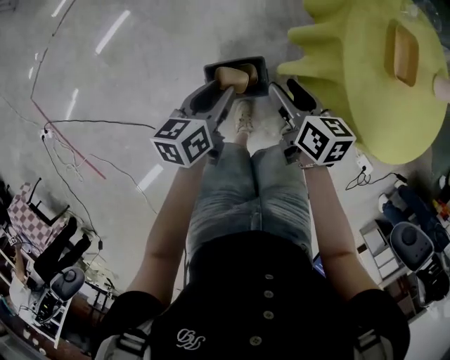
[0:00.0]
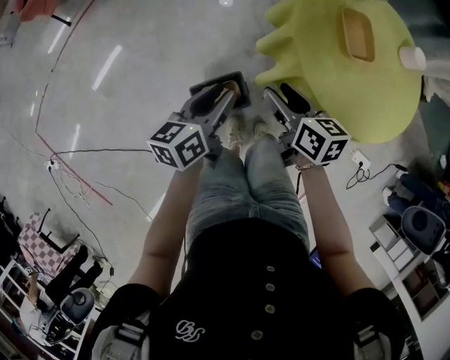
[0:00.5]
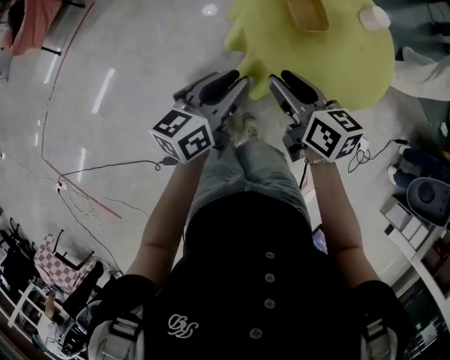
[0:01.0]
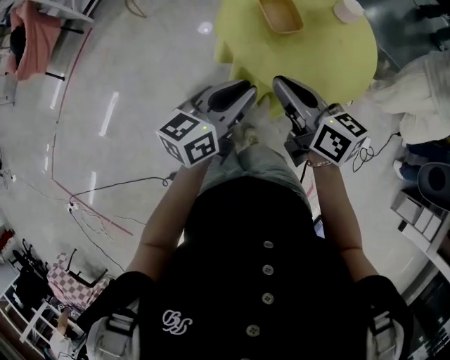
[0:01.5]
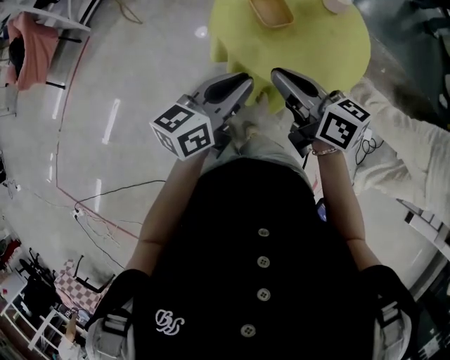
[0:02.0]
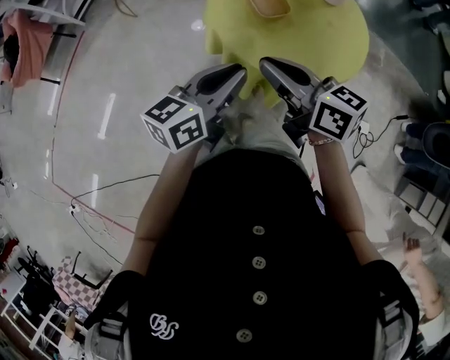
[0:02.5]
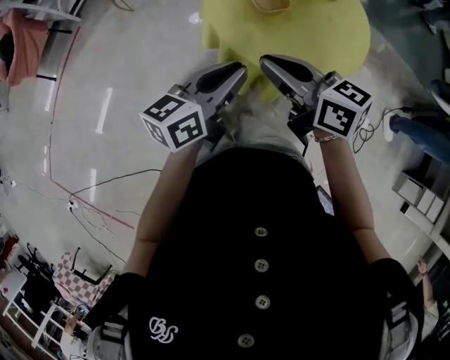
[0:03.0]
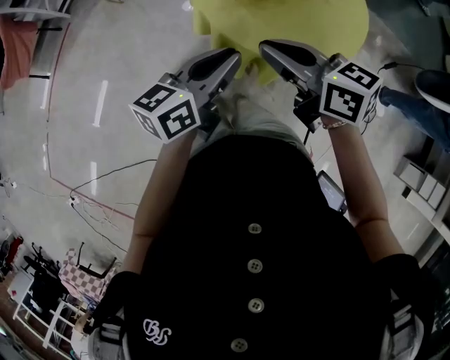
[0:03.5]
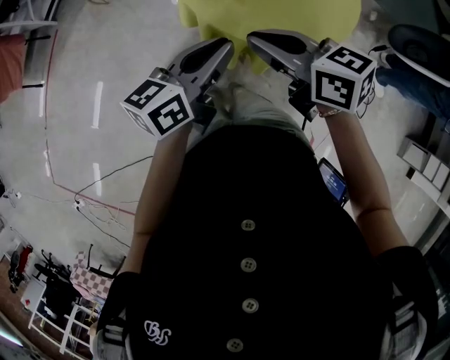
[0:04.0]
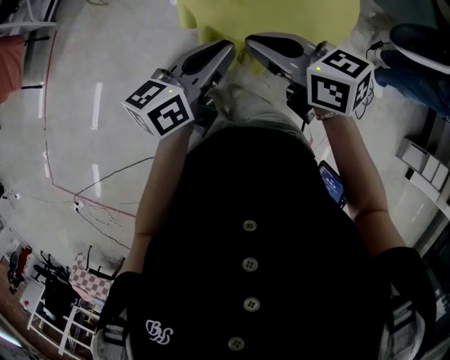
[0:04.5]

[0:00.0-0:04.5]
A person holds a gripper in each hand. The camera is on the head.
0:00.0 to 0:02.0: The left gripper shifts about 35 cm to the right and upward, and changes its angle by roughly 50 degrees; the right gripper shifts some 30 cm upward and to the right, rotates some 30 degrees, and closes its fingers.
0:02.0 to 0:04.5: The grippers move only a little.

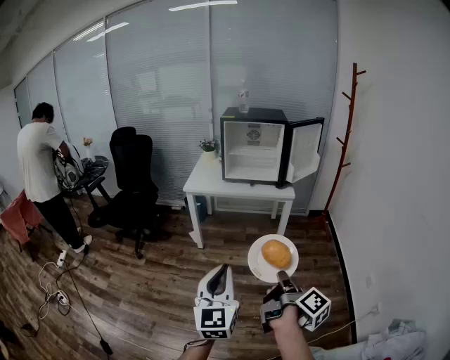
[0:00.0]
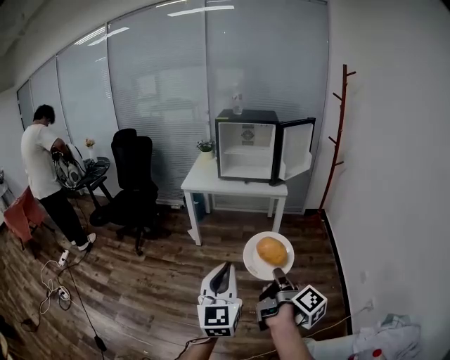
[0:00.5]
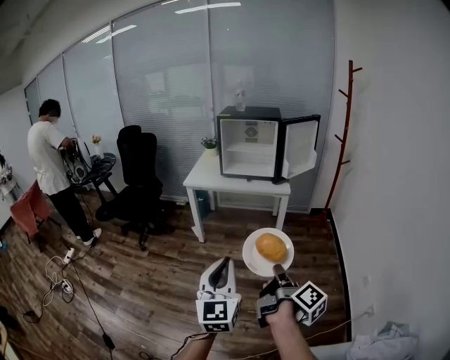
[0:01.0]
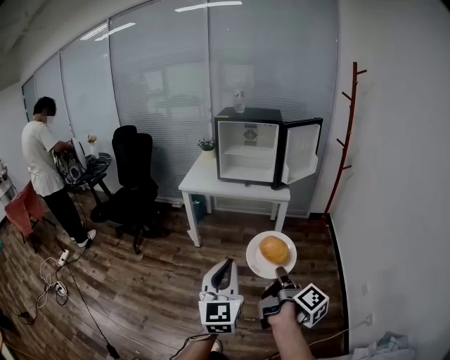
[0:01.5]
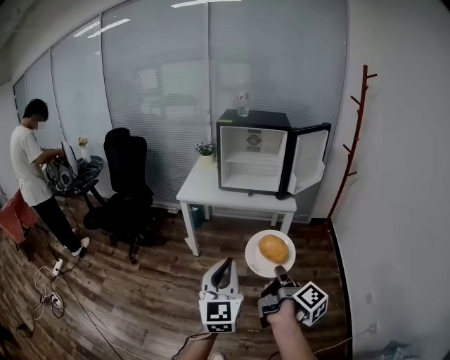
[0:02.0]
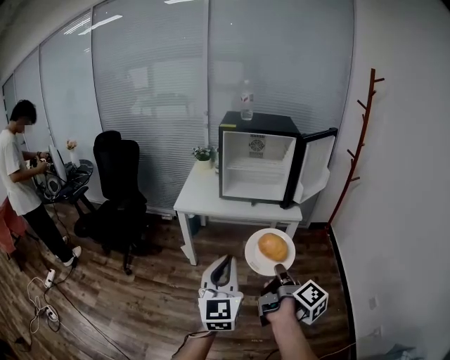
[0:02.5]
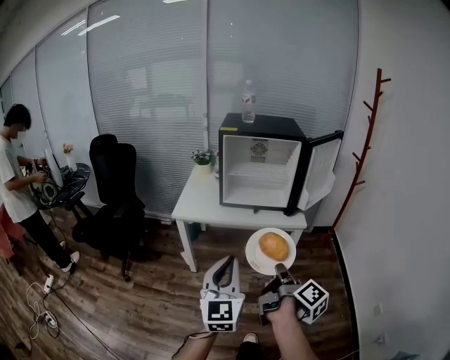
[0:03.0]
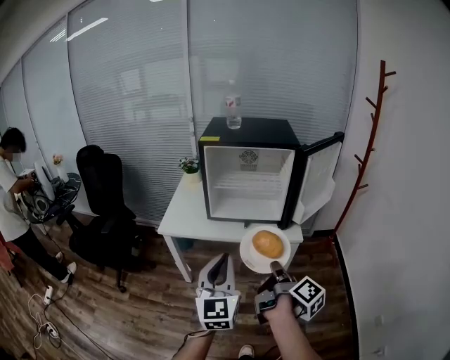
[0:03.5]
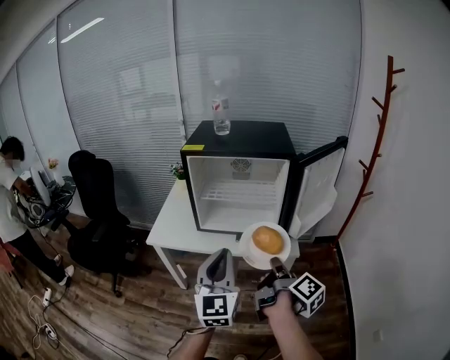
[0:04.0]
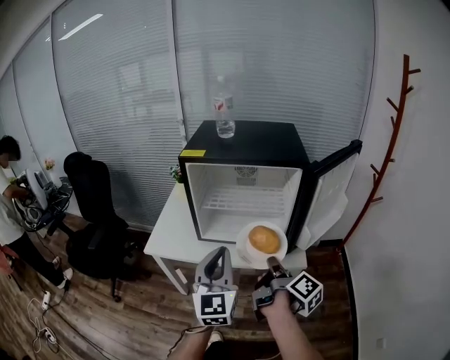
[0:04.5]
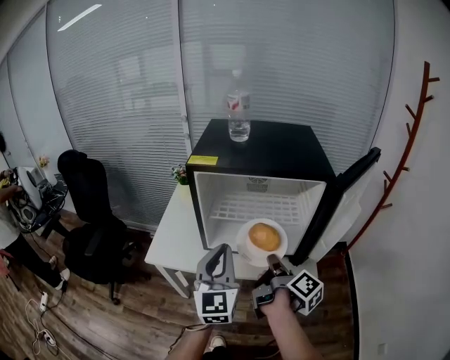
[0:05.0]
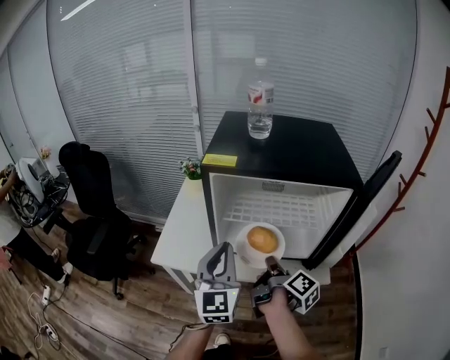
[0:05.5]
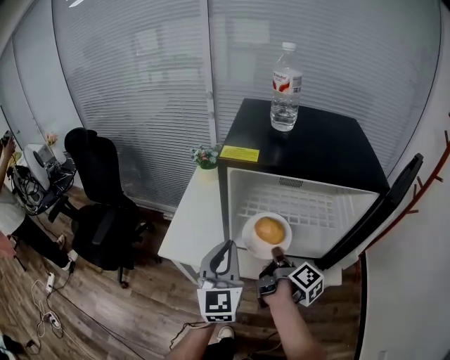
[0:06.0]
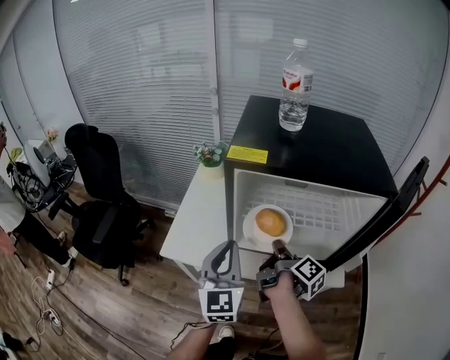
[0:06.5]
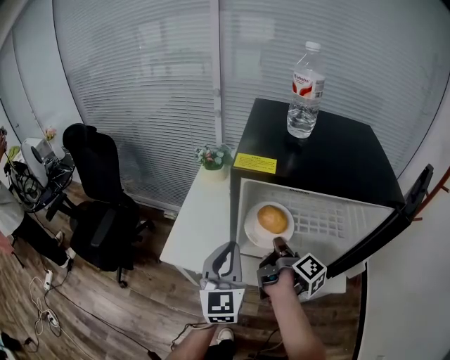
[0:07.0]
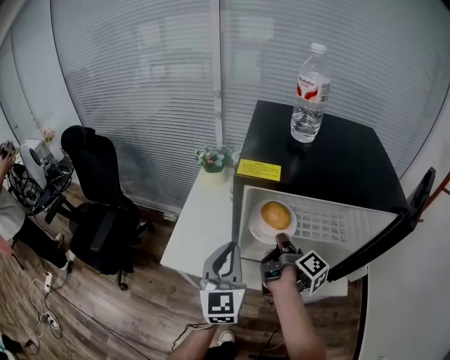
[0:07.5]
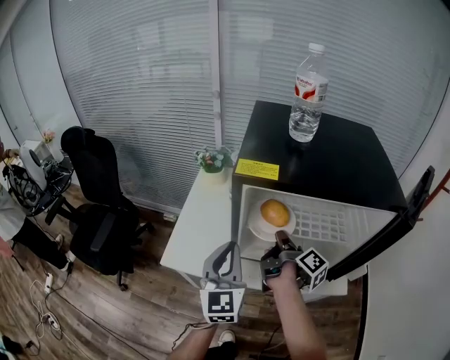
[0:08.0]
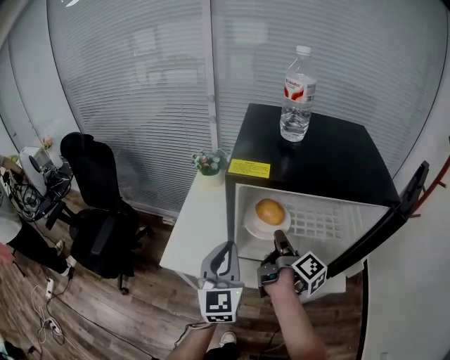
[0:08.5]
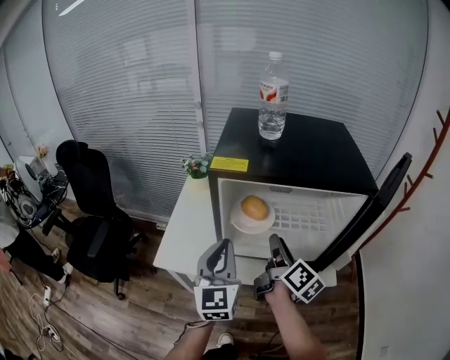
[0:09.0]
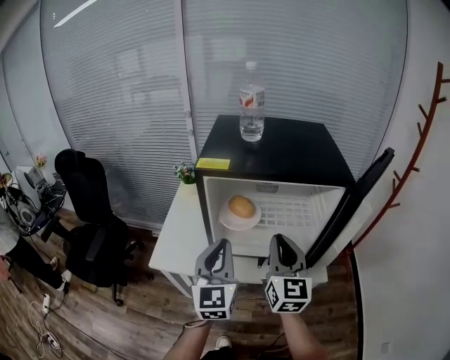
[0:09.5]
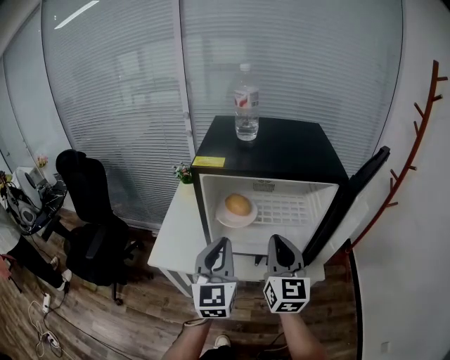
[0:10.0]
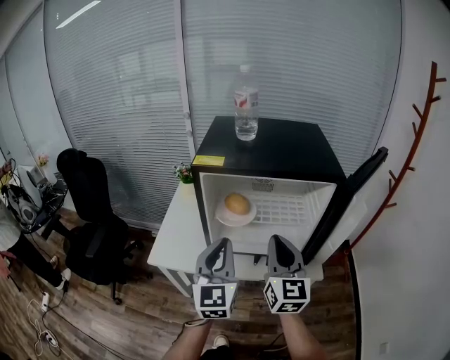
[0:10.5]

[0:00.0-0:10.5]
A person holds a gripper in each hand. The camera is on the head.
0:00.0 to 0:02.0: The left gripper moves about 15 cm.
0:02.0 to 0:04.0: The left gripper ends up some 40 cm from where it was.
0:04.0 to 0:06.5: The left gripper shifts by roughly 30 cm.
0:08.5 to 0:10.5: The left gripper changes place by roughly 10 cm.

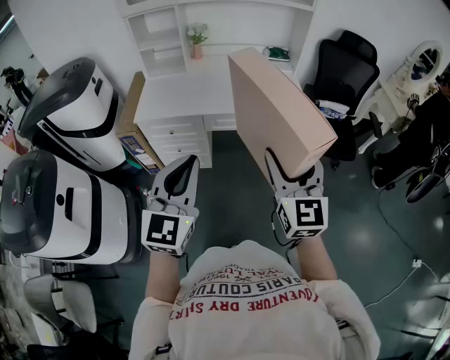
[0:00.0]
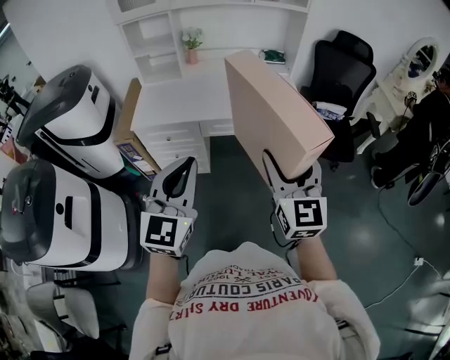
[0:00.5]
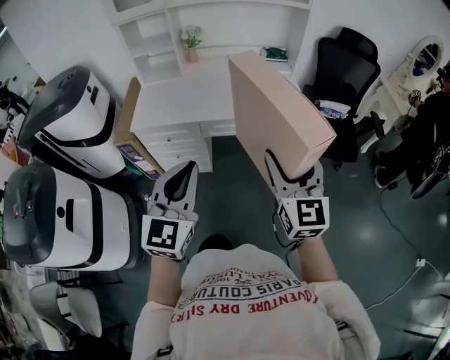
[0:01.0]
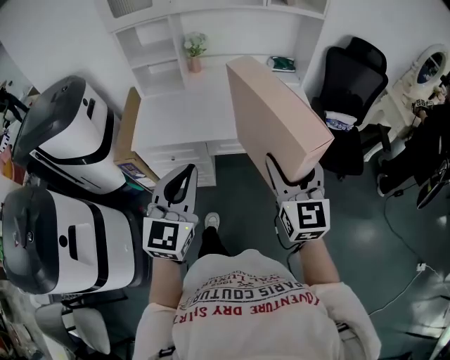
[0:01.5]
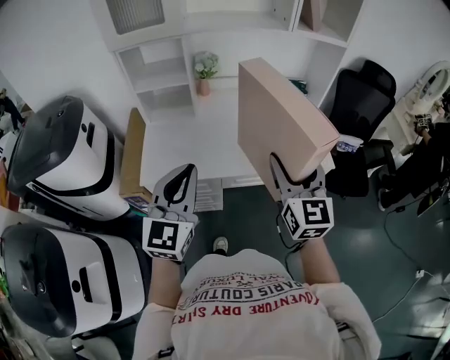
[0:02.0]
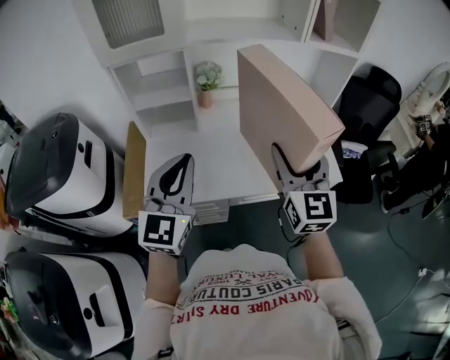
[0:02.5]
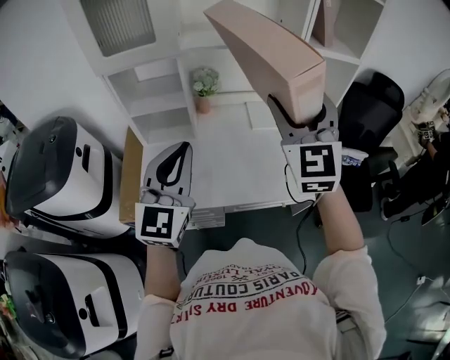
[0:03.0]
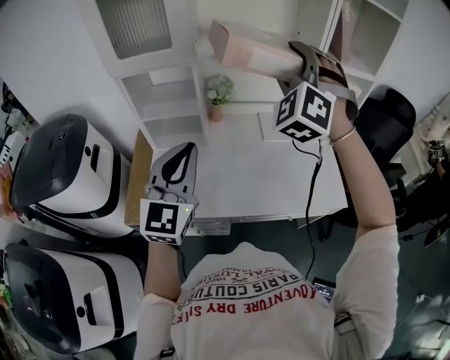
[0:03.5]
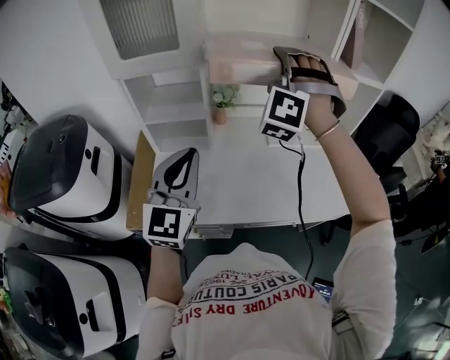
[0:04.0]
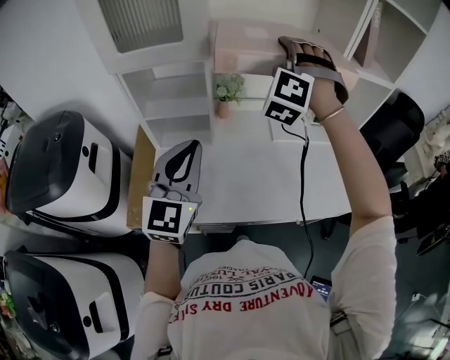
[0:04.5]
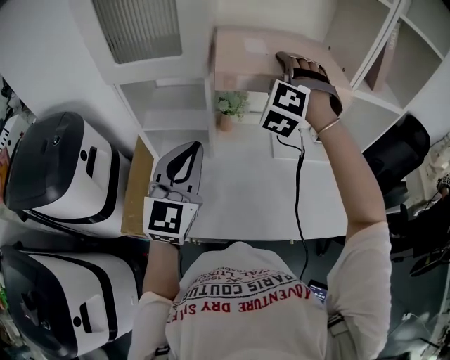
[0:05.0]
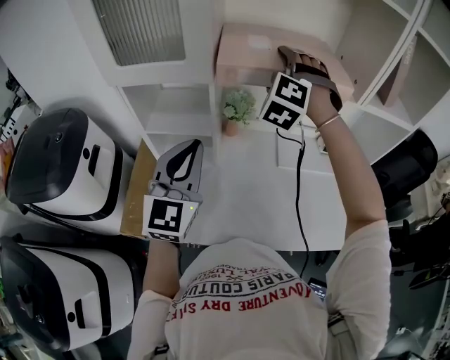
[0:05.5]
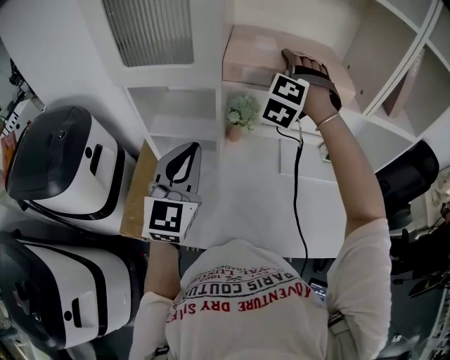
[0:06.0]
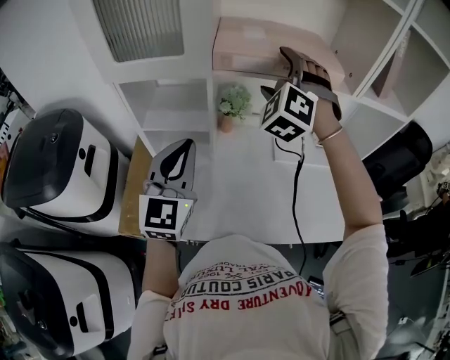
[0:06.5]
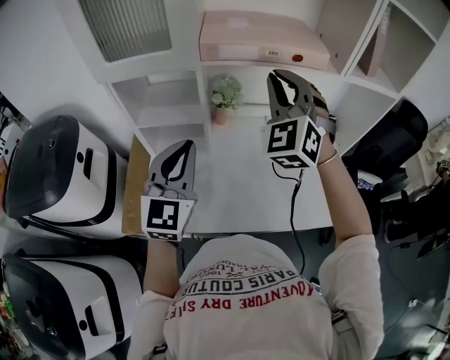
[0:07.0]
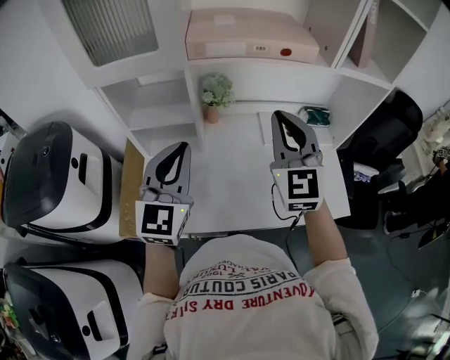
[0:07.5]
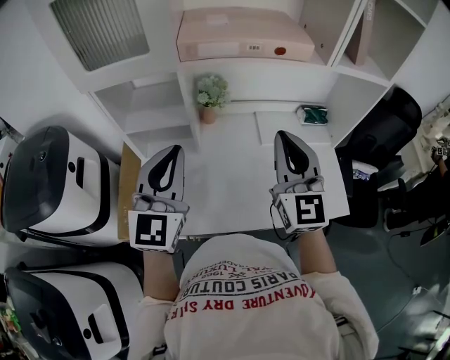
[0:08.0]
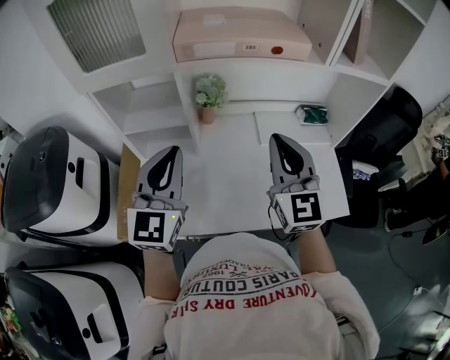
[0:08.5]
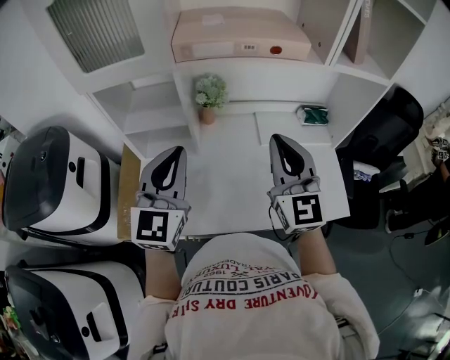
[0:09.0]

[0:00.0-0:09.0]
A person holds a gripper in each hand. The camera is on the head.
0:00.0 to 0:02.0: The grippers both shift forward and to the left by some 30 cm.
0:02.0 to 0:04.5: The right gripper goes roughly 40 cm forward and to the left, and twists approximately 80 degrees counterclockwise, seen from behind; the left gripper moves forward, approximately 20 cm.
0:04.5 to 0:07.0: The right gripper moves some 10 cm forward and comes back, swivels approximately 40 degrees, and closes.
0:07.0 to 0:09.0: The right gripper travels backward, downward and to the right by approximately 15 cm, and rolls clockwise, seen from behind, by roughly 40 degrees.

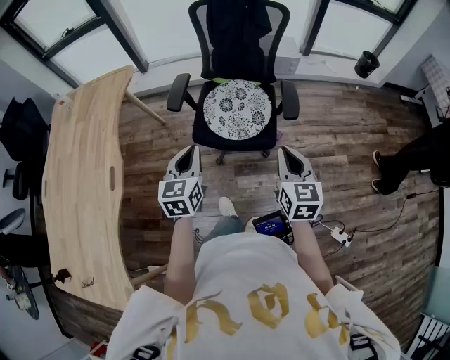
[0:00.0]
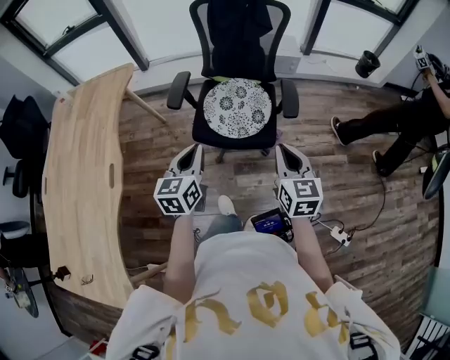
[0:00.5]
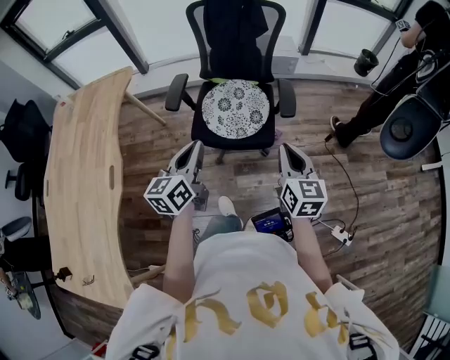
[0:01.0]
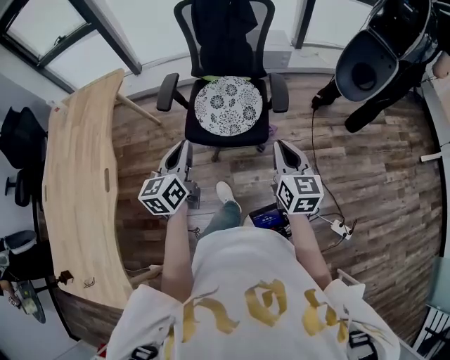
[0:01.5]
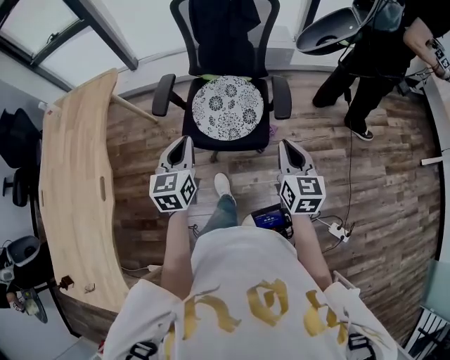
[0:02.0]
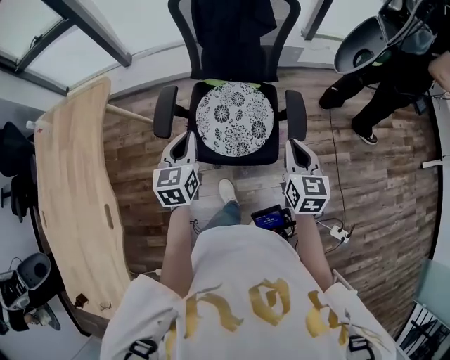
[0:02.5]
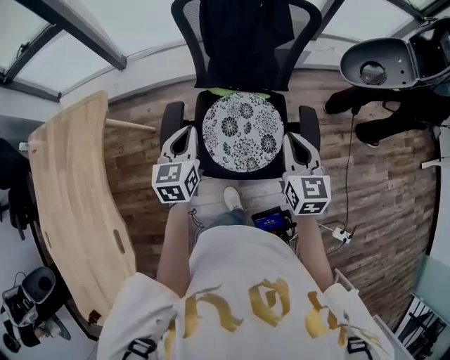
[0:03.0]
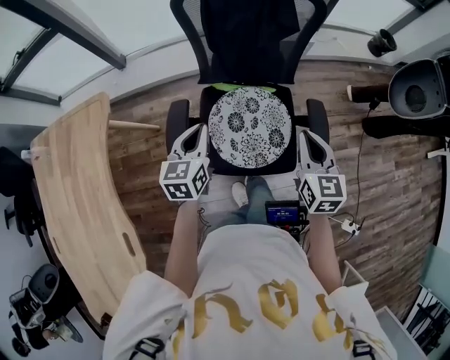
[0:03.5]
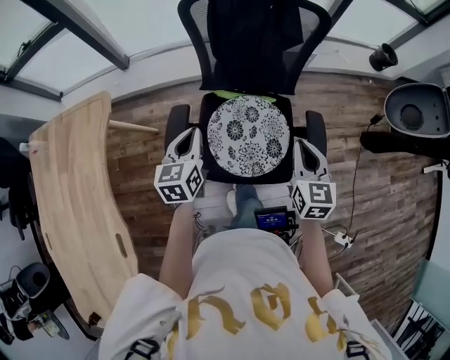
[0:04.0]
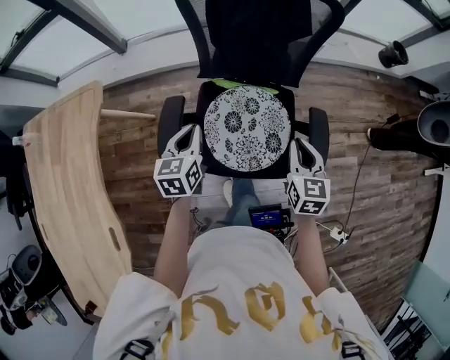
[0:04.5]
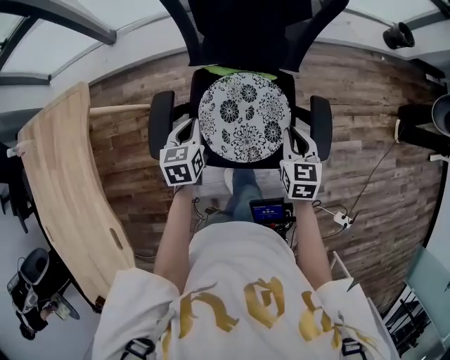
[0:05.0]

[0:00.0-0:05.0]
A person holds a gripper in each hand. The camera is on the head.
0:00.0 to 0:02.5: Both grippers travel together forward, about 25 cm.
0:02.5 to 0:05.0: The right gripper is displaced forward and downward by approximately 20 cm. Meanwhile the left gripper is displaced downward and forward by some 25 cm.
